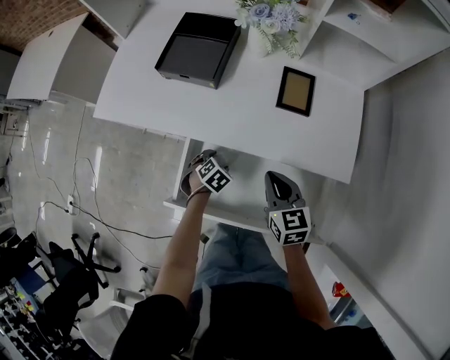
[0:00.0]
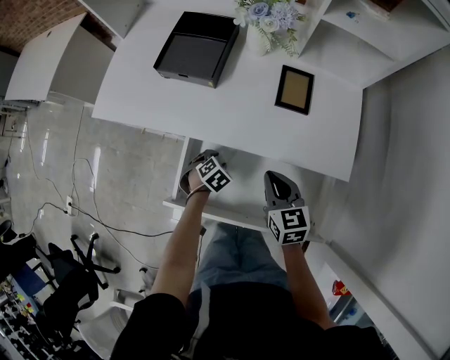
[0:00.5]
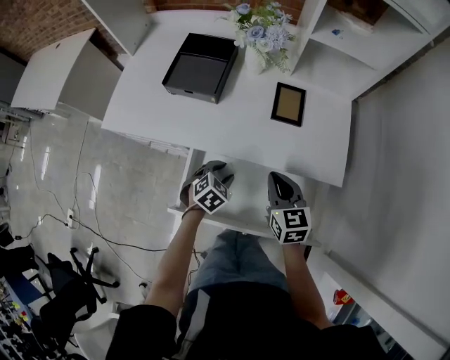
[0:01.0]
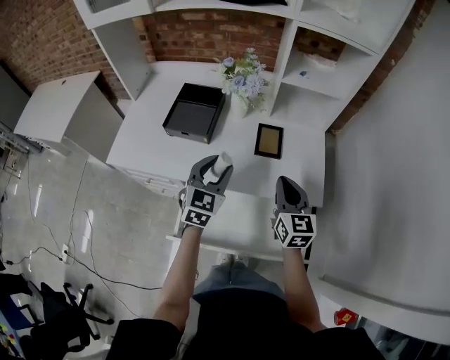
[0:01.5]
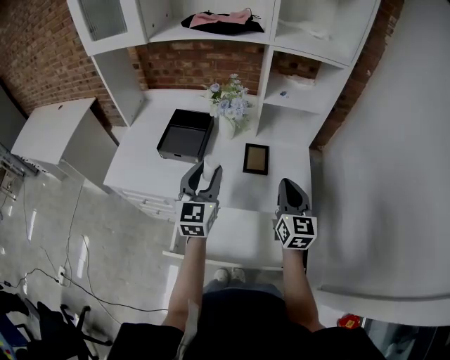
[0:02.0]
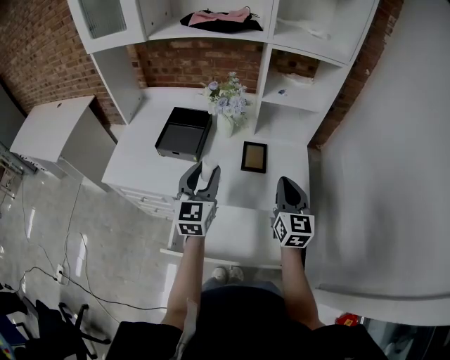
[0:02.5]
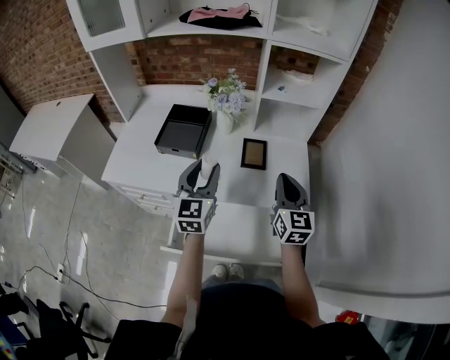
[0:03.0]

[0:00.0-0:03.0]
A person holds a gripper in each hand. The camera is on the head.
0:00.0 to 0:01.5: The right gripper is displaced upward by roughly 15 cm, and swivels approximately 30 degrees; the left gripper heads upward, covering about 35 cm, tilts its fingers some 50 degrees upward, and closes its fingers.
0:01.5 to 0:03.0: Both grippers travel together upward, about 5 cm. The left gripper swivels some 20 degrees.

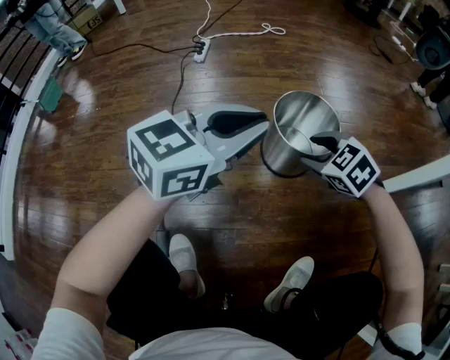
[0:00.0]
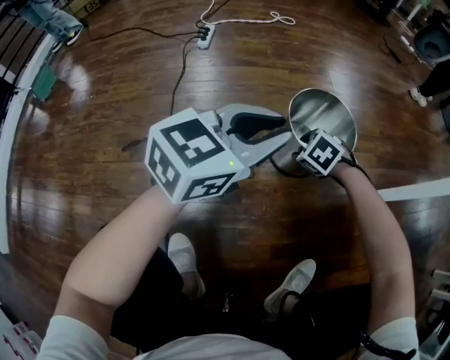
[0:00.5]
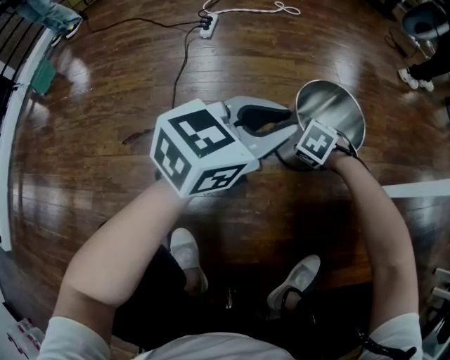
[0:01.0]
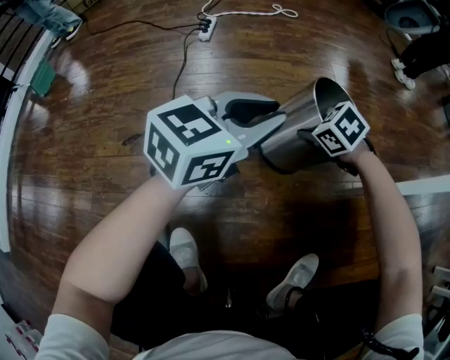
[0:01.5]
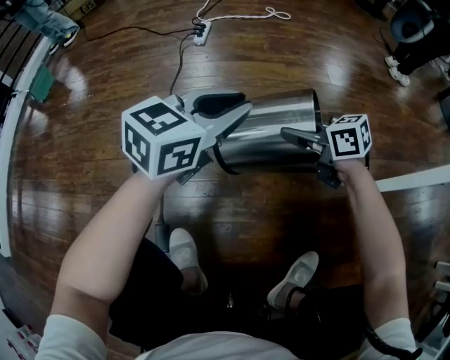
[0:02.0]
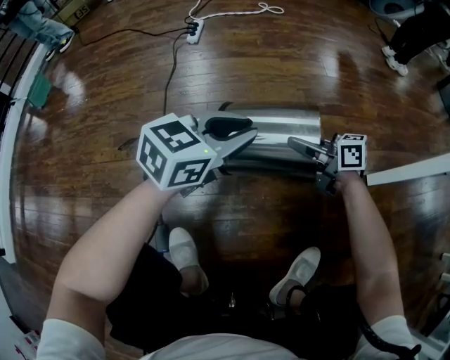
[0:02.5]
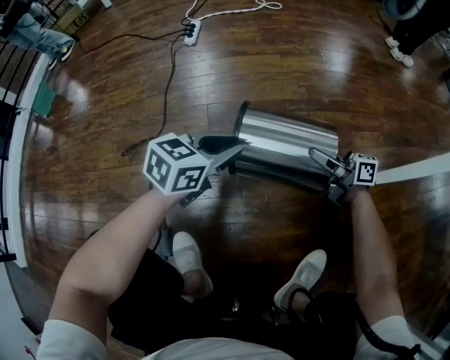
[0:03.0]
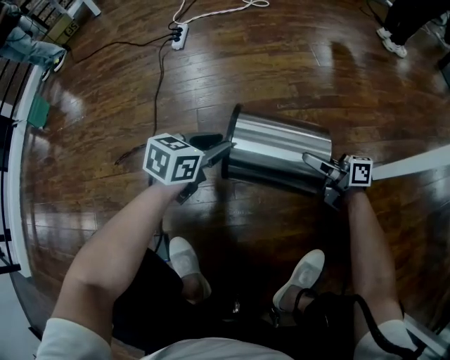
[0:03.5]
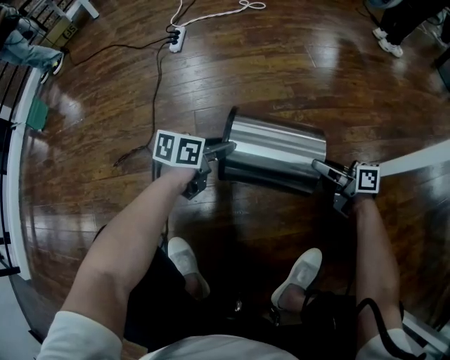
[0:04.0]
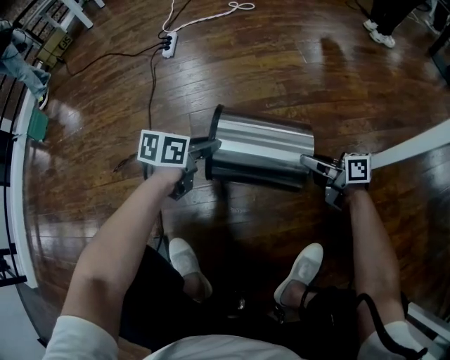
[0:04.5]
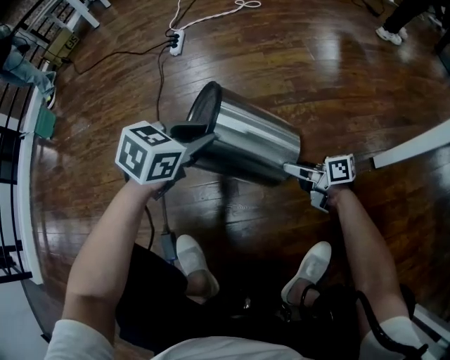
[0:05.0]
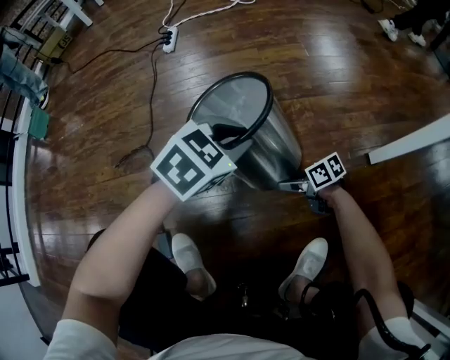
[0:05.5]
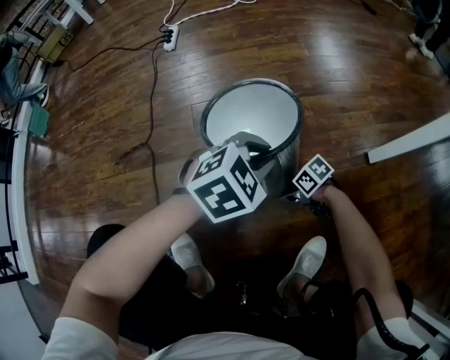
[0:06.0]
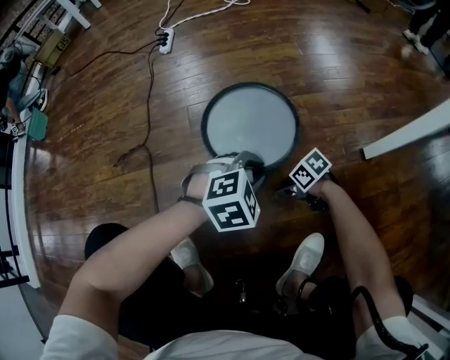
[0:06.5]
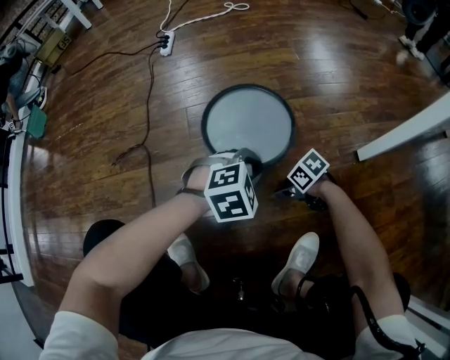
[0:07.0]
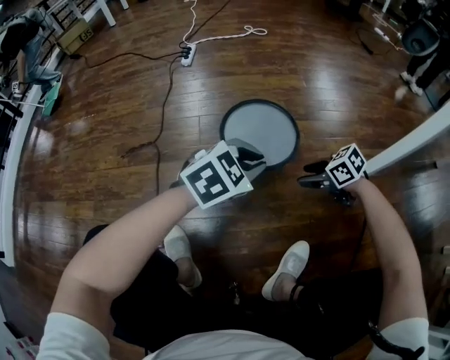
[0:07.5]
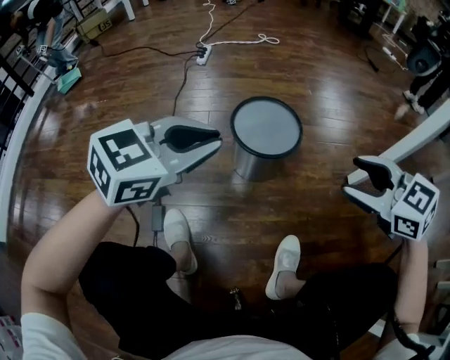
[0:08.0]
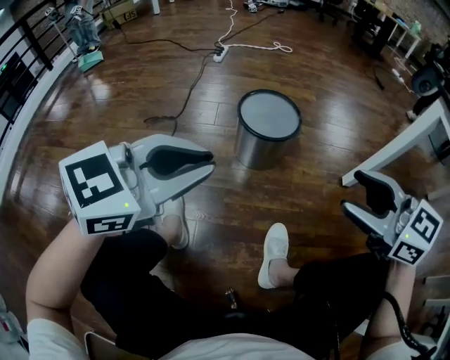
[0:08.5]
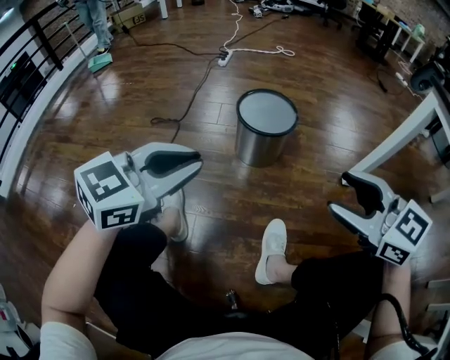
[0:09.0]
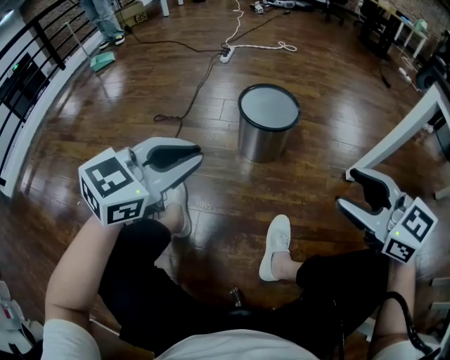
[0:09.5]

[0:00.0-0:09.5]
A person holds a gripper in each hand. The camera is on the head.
0:00.0 to 0:02.0: The right gripper goes downward and returns, some 15 cm each way, swivels about 50 degrees, and closes its fingers. Meanwhile the left gripper changes place by roughly 10 cm.
0:02.0 to 0:04.0: The left gripper travels downward by about 20 cm, and swivels approximately 40 degrees. Meanwhile the right gripper moves about 20 cm, and changes its angle by approximately 30 degrees.
0:04.0 to 0:05.5: The right gripper heads downward, covering roughly 10 cm, changes its angle by some 30 degrees, and opens up. The left gripper is displaced upward by roughly 10 cm, and rolls clockwise, seen from behind, by some 50 degrees.
0:05.5 to 0:07.5: The right gripper heads upward, covering about 15 cm, and rotates about 30 degrees. Meanwhile the left gripper moves some 10 cm downward and comes back.
0:07.5 to 0:09.5: The left gripper shifts by approximately 25 cm, and rotates roughly 30 degrees. Meanwhile the right gripper moves upward, some 30 cm, and turns by some 40 degrees.

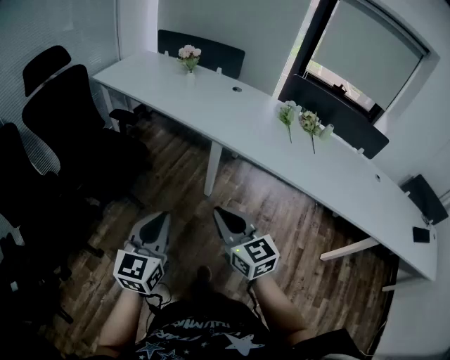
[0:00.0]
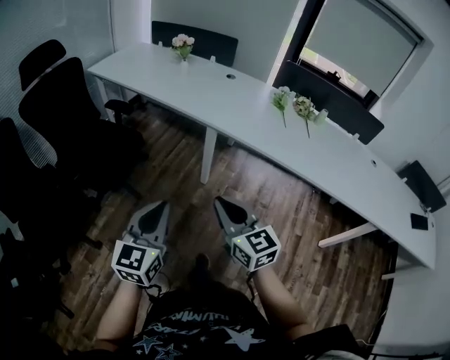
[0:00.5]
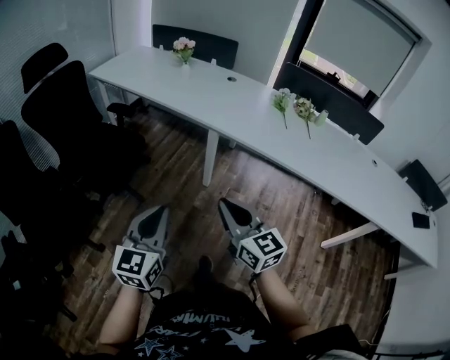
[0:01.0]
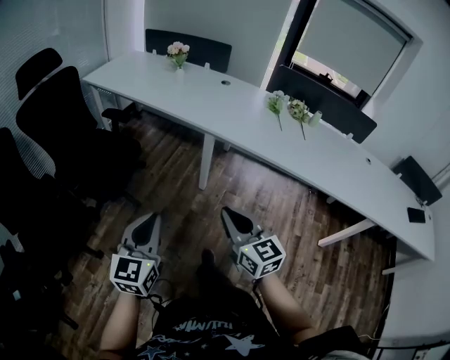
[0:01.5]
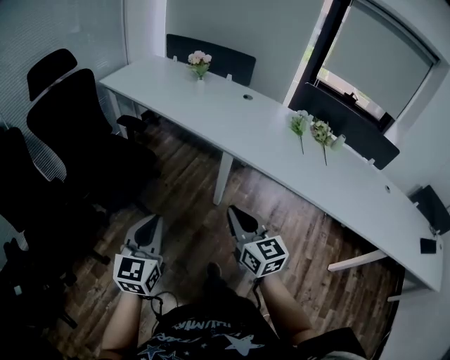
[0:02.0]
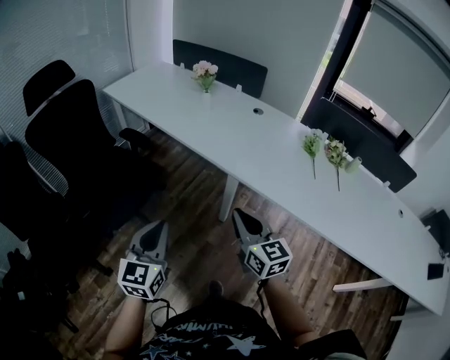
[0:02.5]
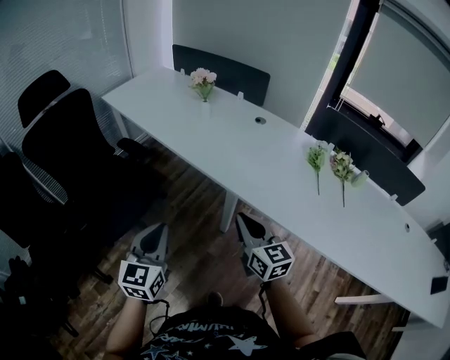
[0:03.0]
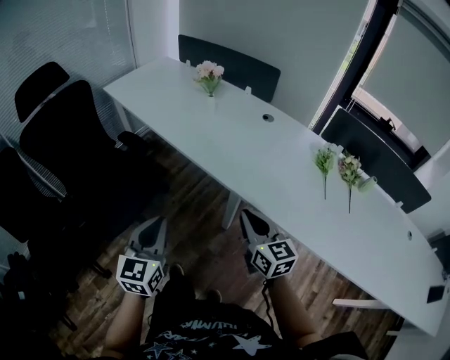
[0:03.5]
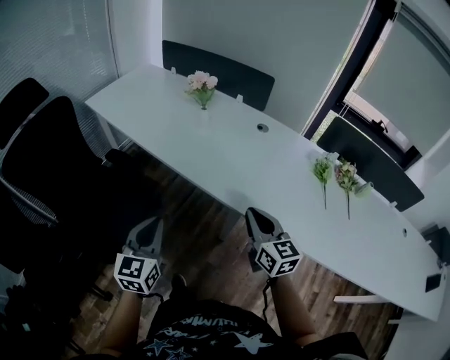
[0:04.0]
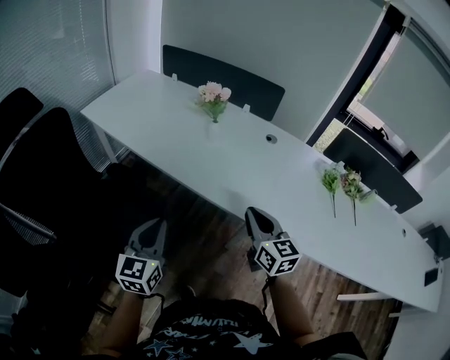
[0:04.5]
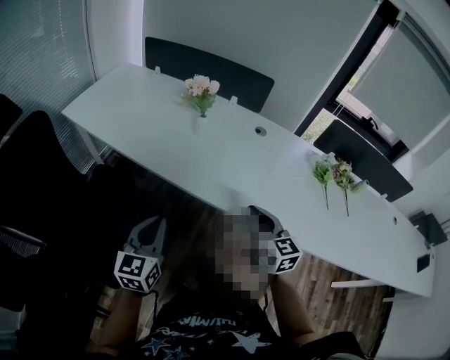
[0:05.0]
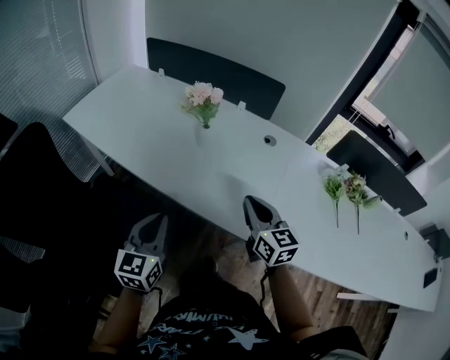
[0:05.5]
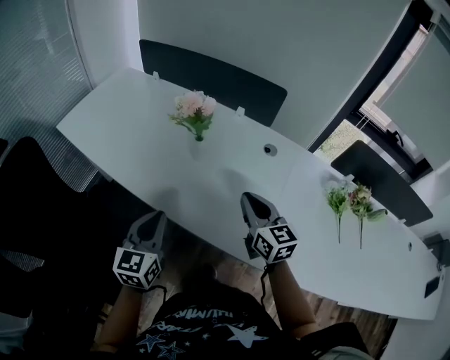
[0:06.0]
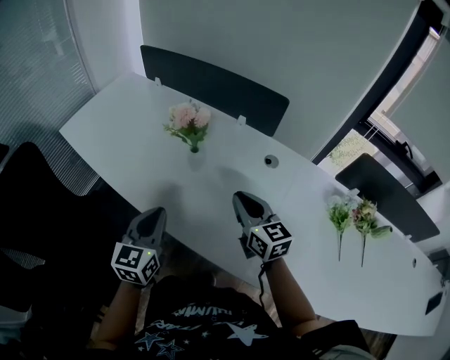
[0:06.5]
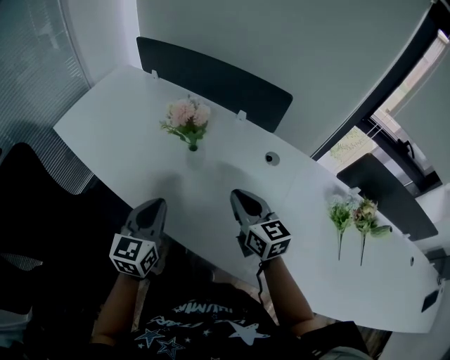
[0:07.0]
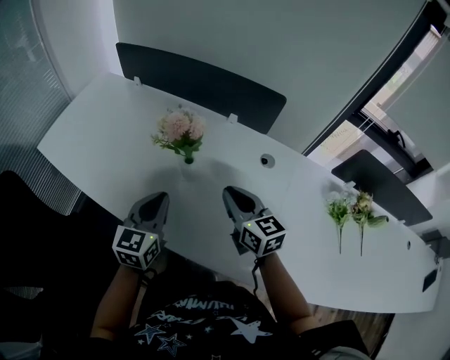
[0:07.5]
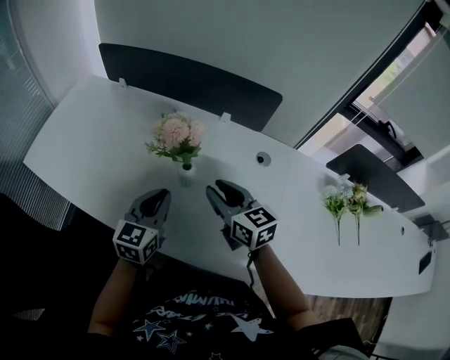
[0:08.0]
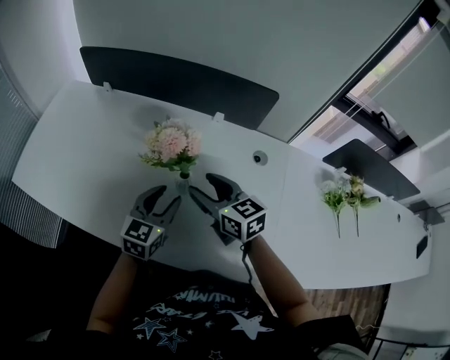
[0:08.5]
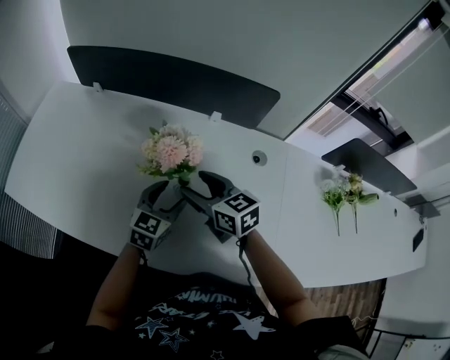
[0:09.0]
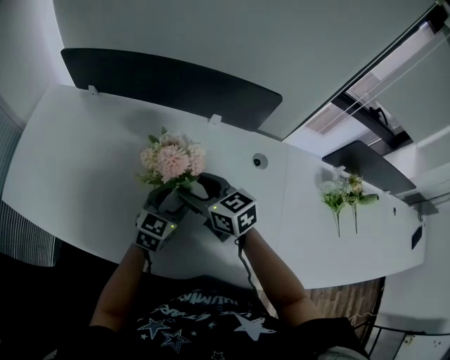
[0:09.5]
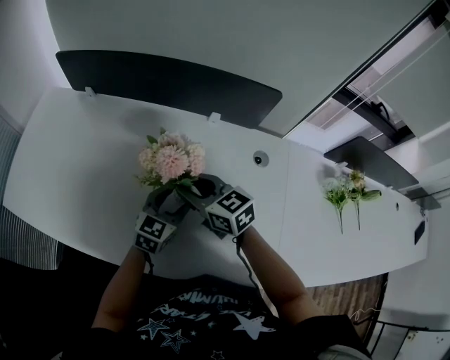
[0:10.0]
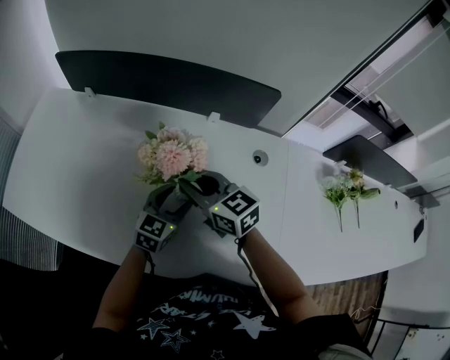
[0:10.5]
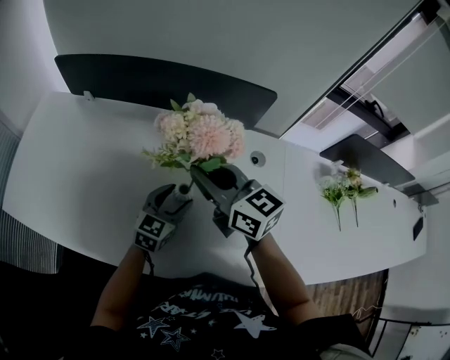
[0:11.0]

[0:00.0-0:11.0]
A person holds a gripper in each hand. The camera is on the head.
0:00.0 to 0:02.0: The left gripper moves forward and to the left, about 10 cm. The right gripper shifts approximately 10 cm forward.
0:02.0 to 0:03.5: Both grippers move forward, about 25 cm.
0:03.5 to 0:05.5: The two grippers go about 25 cm forward.
0:05.5 to 0:07.5: The two grippers go approximately 20 cm forward.
0:07.5 to 0:09.0: The right gripper moves forward and to the left, about 15 cm, and opens its fingers, while the left gripper is displaced forward and downward by roughly 15 cm, changes its angle by roughly 30 degrees, and opens its fingers.
0:09.0 to 0:11.0: The right gripper moves upward, approximately 10 cm, and closes.

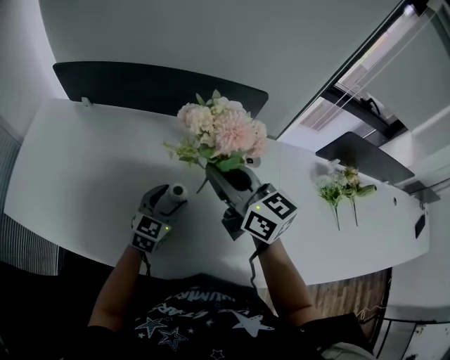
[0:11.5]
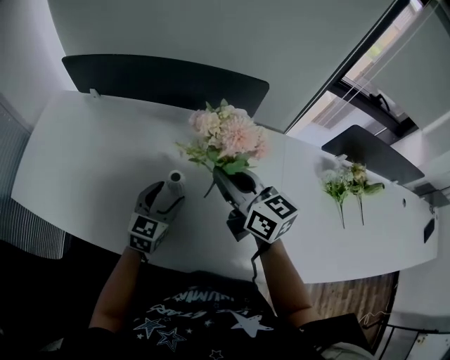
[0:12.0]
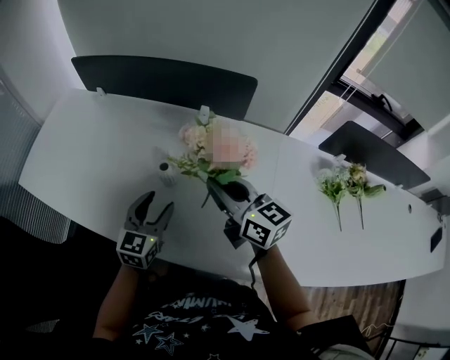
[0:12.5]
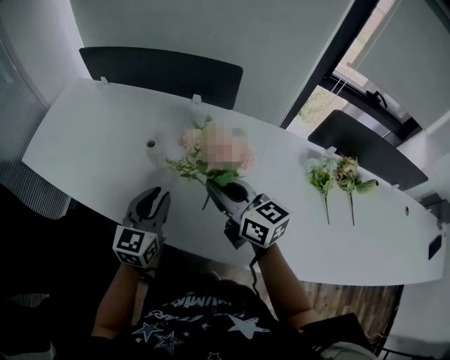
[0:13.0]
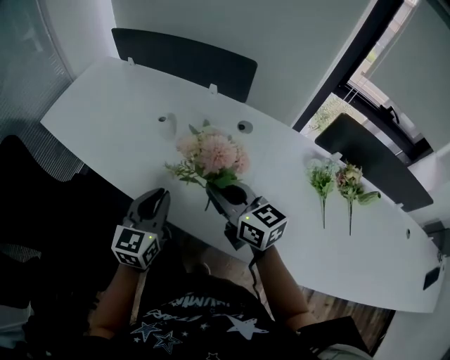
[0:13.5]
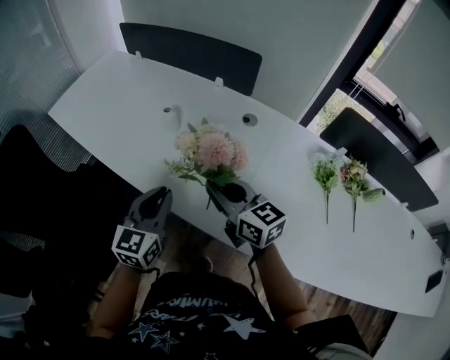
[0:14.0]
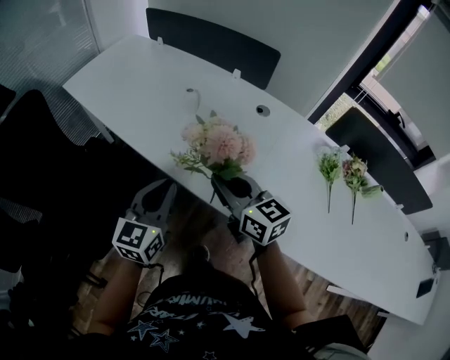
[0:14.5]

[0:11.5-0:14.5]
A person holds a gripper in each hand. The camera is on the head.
0:11.5 to 0:13.0: The left gripper moves backward and upward, approximately 20 cm, changes its angle by approximately 20 degrees, and closes its fingers; the right gripper heads backward and to the right, covering some 20 cm.
0:13.0 to 0:14.5: Both grippers travel together backward, some 20 cm.
